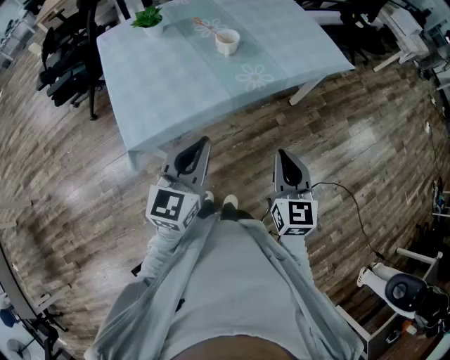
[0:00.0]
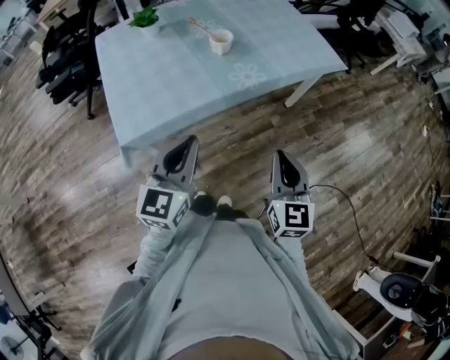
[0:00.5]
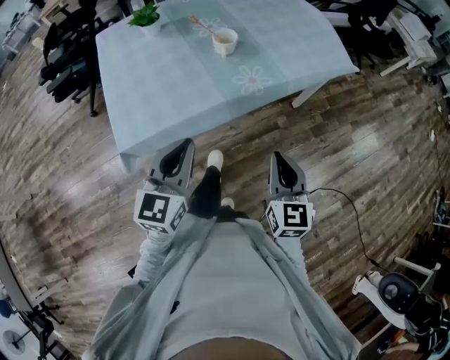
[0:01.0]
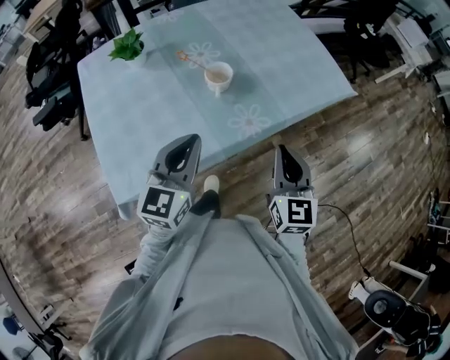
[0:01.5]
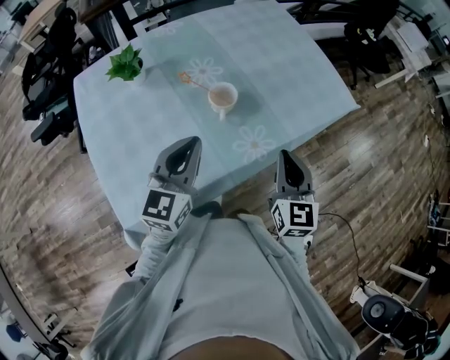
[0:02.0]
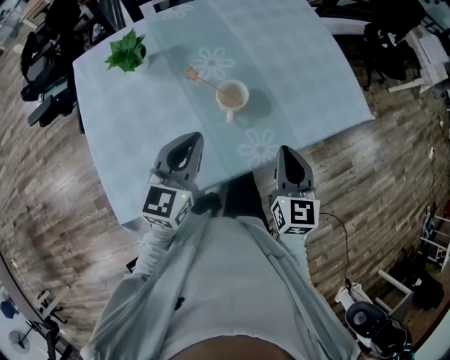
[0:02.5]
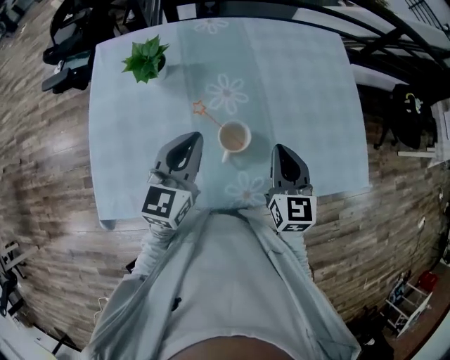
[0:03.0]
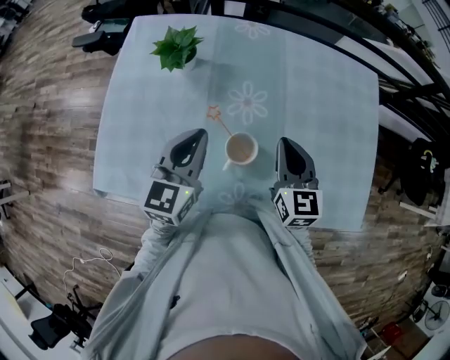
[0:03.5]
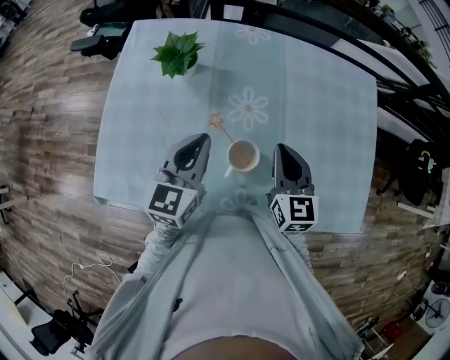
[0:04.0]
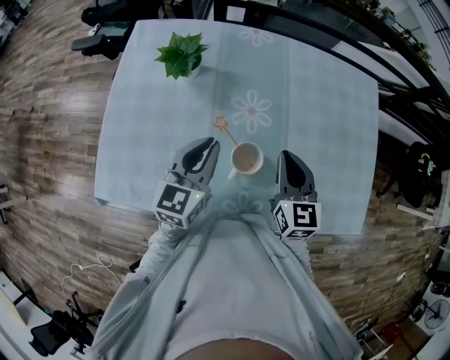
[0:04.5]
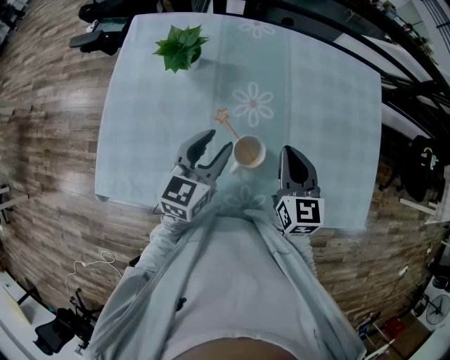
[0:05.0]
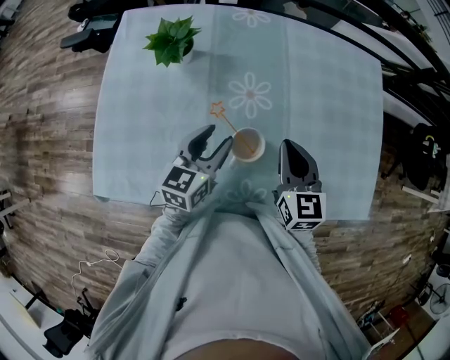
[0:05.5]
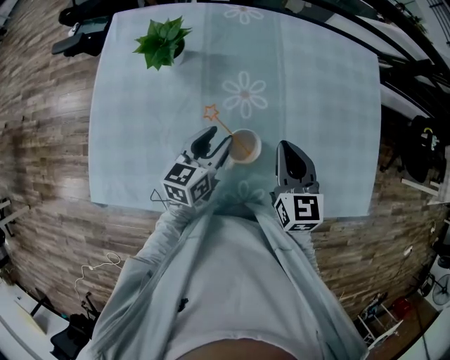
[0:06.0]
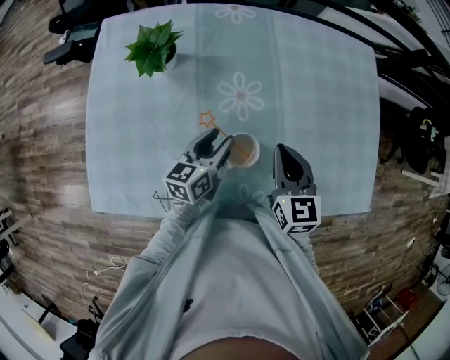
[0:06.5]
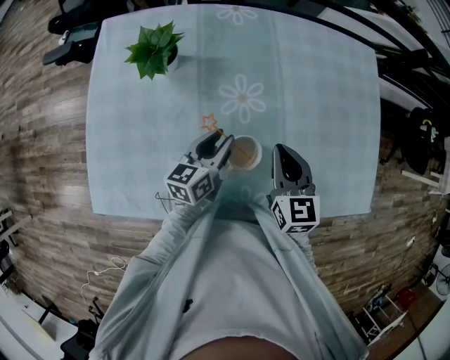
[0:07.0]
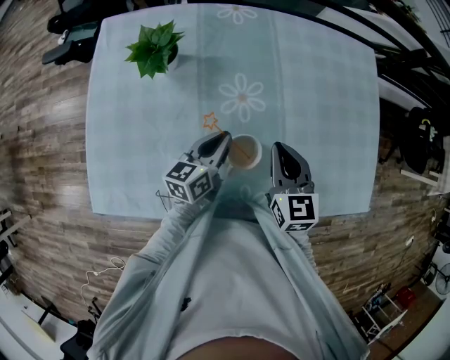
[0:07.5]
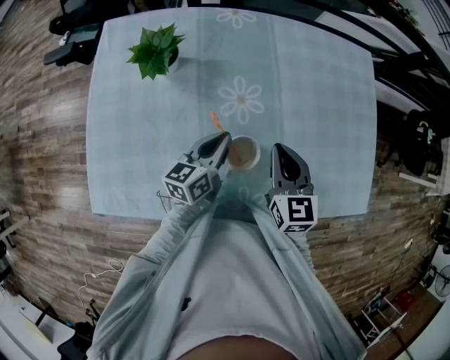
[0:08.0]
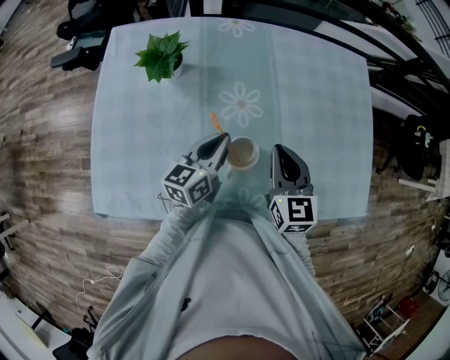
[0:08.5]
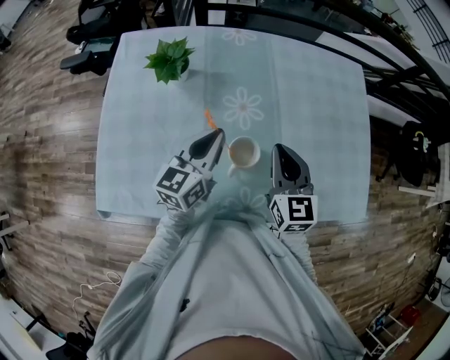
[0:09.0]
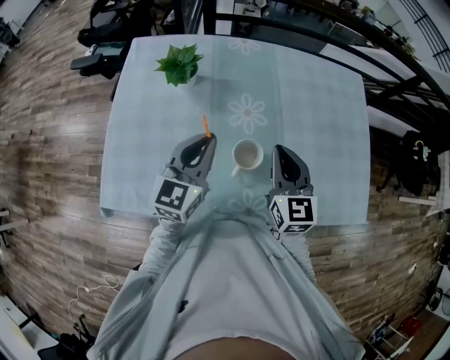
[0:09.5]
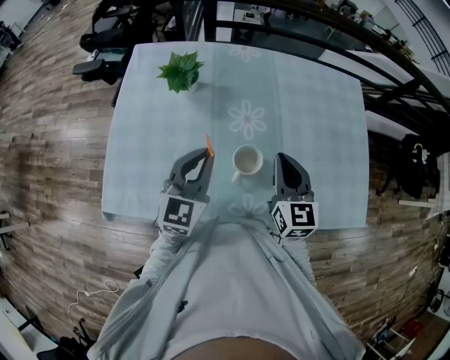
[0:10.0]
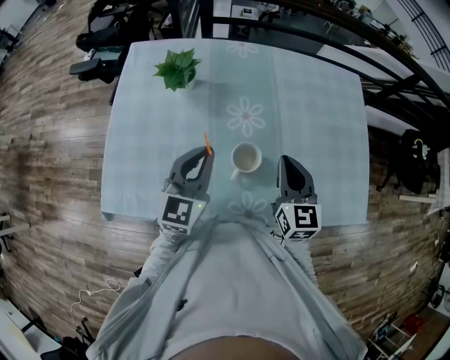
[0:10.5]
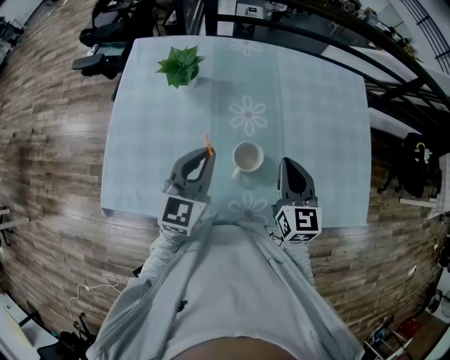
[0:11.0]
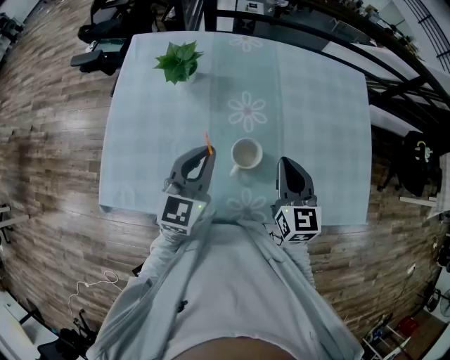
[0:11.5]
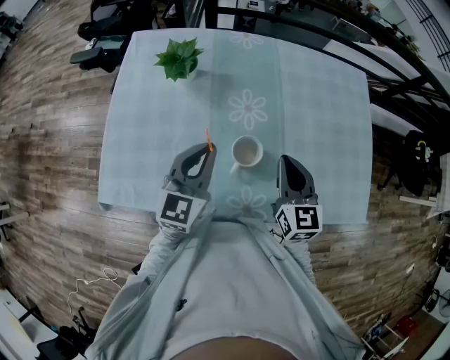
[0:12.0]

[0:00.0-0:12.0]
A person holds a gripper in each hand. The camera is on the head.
0:00.0 to 0:02.0: The two grippers go approximately 30 cm forward.
0:02.0 to 0:04.0: The right gripper changes place by roughly 30 cm, and swivels approximately 40 degrees; the left gripper moves about 20 cm, and turns by some 40 degrees.
0:04.0 to 0:06.0: The left gripper goes about 10 cm downward, changes its angle by roughly 20 degrees, and opens.
0:06.0 to 0:08.0: The left gripper closes.
0:08.0 to 0:10.0: The right gripper is displaced upward by roughly 5 cm; the left gripper travels upward, backward and to the left by some 15 cm, and rolls clockwise, seen from behind, by some 40 degrees.
0:10.0 to 0:12.0: There are only small adjustments of the grippers.

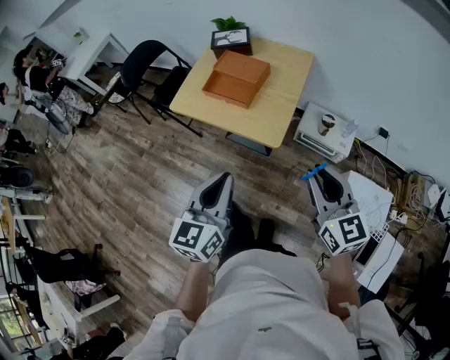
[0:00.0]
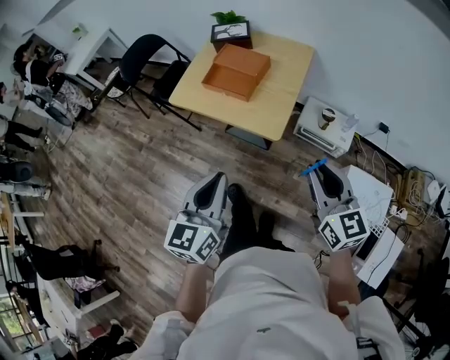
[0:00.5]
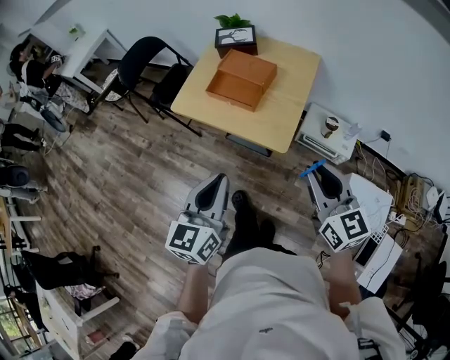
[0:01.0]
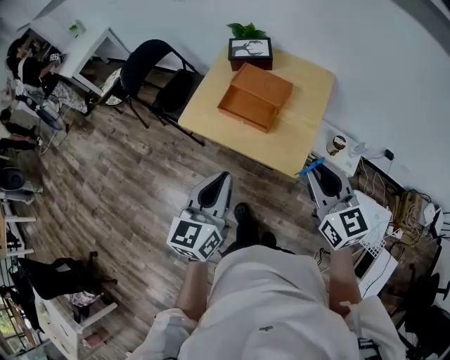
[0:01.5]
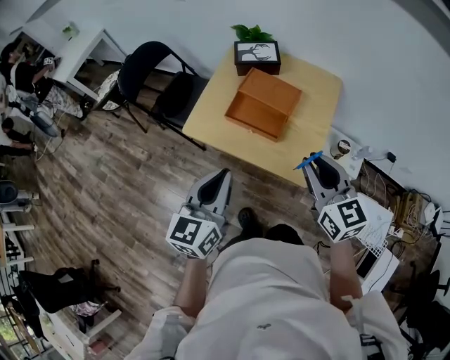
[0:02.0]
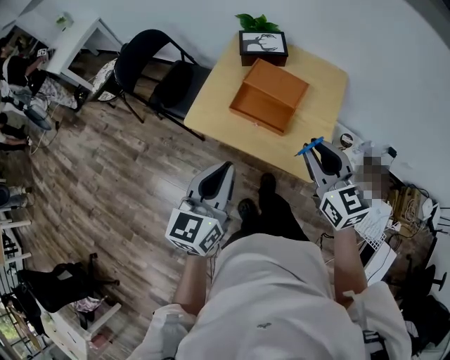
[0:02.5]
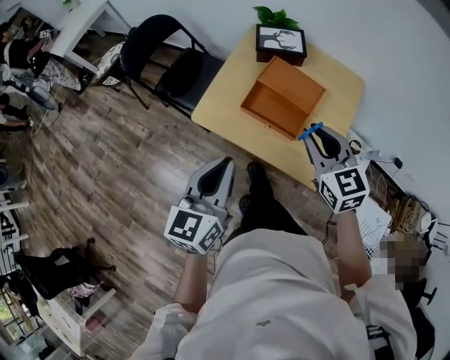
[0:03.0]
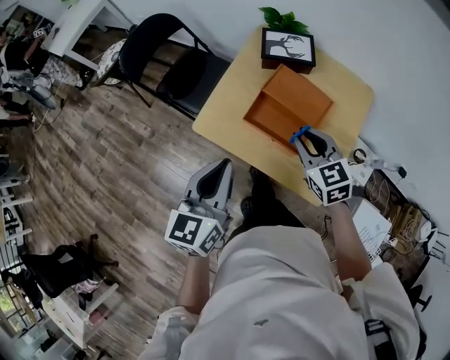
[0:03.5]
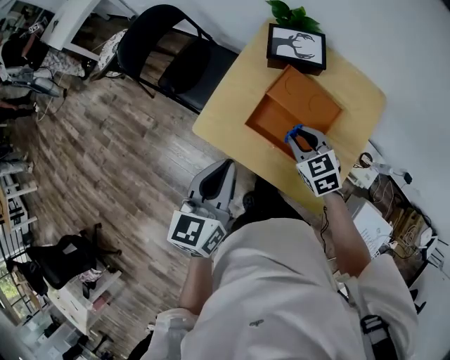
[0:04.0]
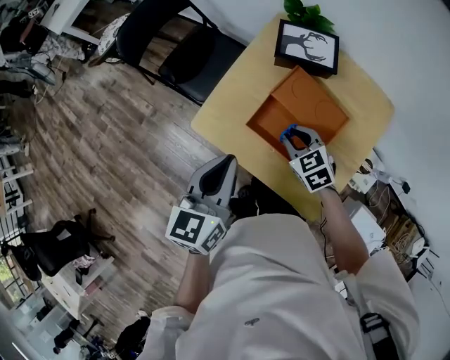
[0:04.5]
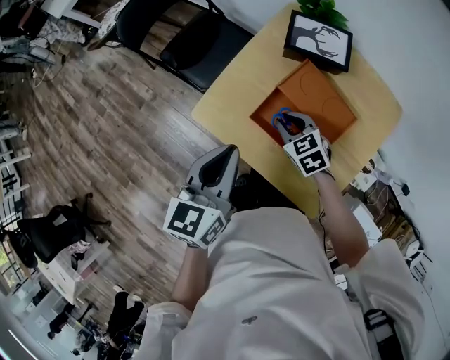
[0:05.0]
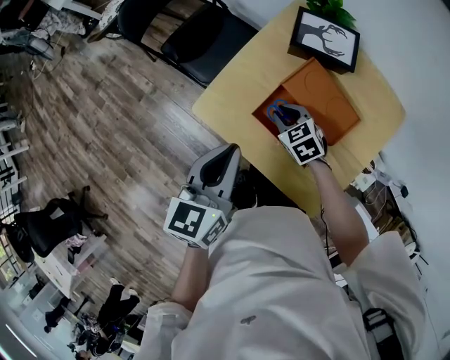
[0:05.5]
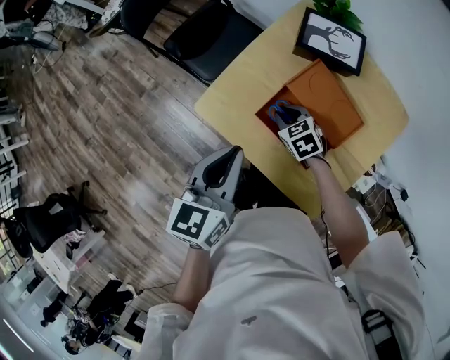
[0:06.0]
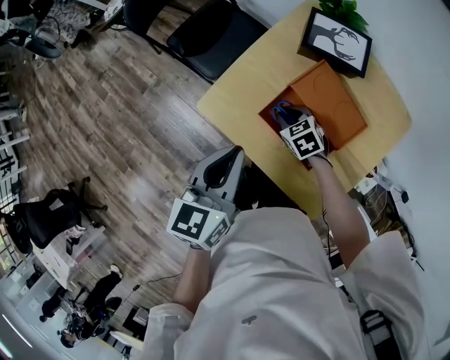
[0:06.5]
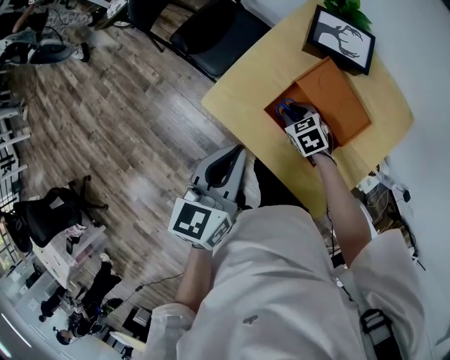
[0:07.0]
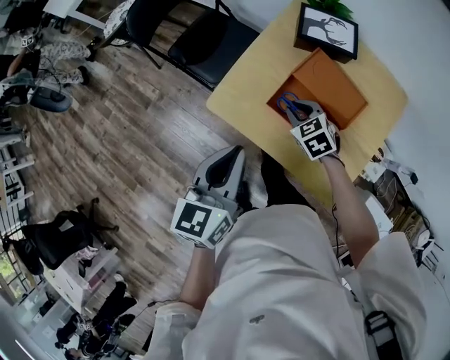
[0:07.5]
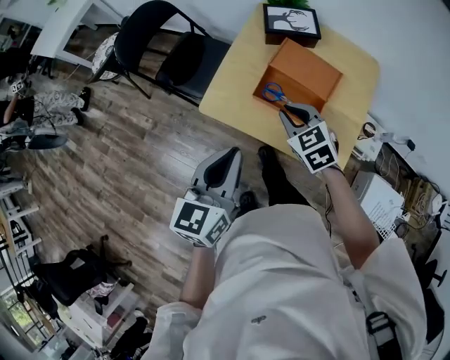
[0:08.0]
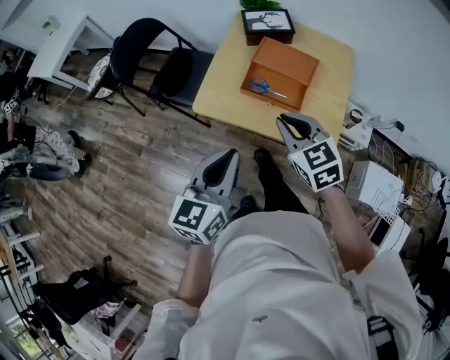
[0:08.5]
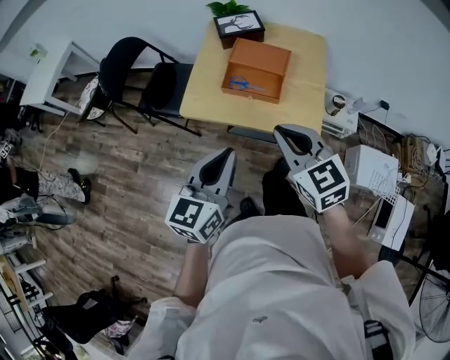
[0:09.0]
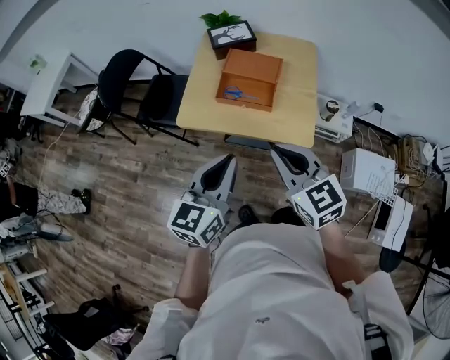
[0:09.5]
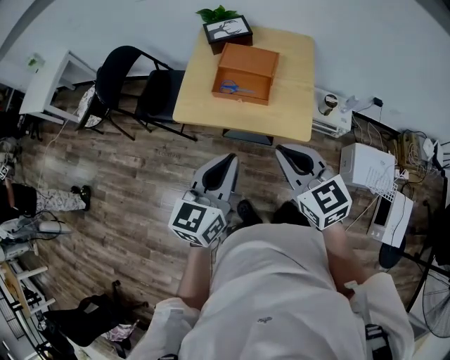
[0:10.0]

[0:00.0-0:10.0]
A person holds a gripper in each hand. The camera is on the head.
0:00.0 to 0:02.0: The grippers both shift forward and to the left by approximately 25 cm.
0:02.0 to 0:04.0: The right gripper is displaced forward and downward by some 30 cm, and turns by about 30 degrees. The left gripper shifts roughly 20 cm forward.
0:04.0 to 0:06.0: The left gripper moves roughly 5 cm. The right gripper moves downward and forward, approximately 15 cm.
0:06.0 to 0:08.0: The left gripper travels backward and to the left by roughly 15 cm; the right gripper goes approximately 20 cm upward and backward, and rotates some 20 degrees.
0:08.0 to 0:10.0: The left gripper travels backward and to the right by about 20 cm. Meanwhile the right gripper heads backward and upward, covering roughly 30 cm, and swivels roughly 30 degrees.

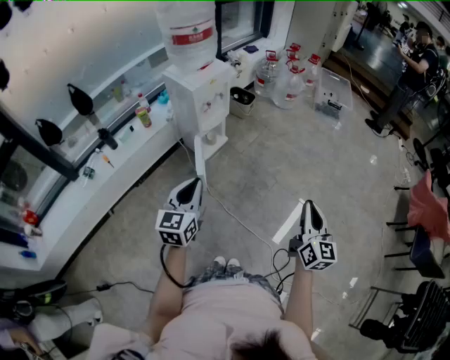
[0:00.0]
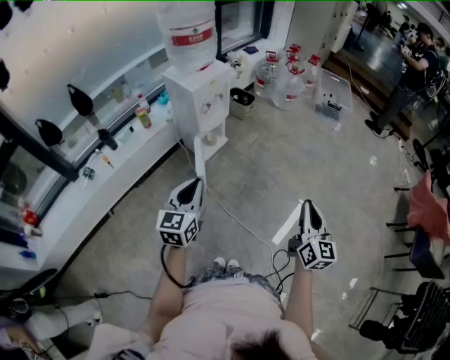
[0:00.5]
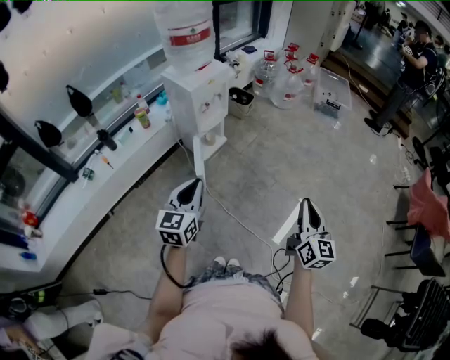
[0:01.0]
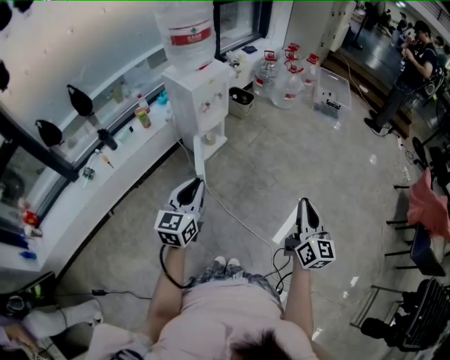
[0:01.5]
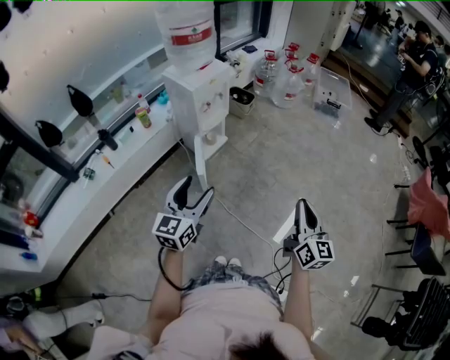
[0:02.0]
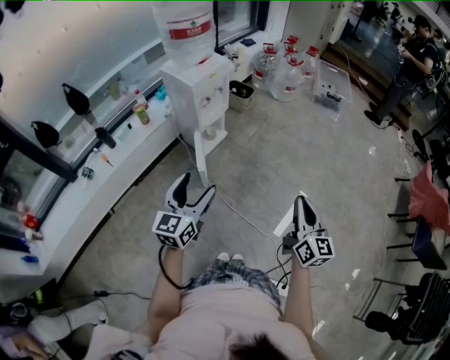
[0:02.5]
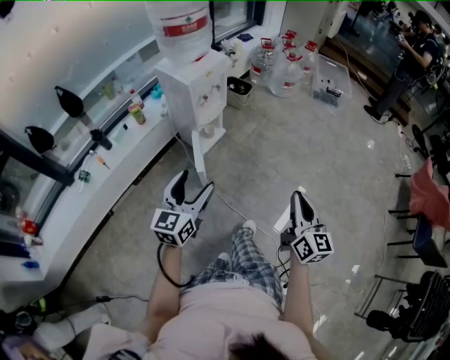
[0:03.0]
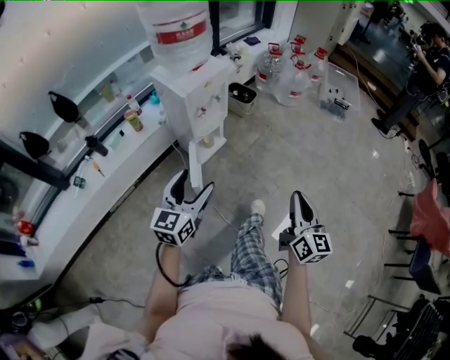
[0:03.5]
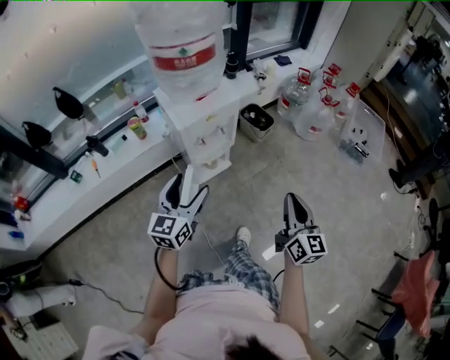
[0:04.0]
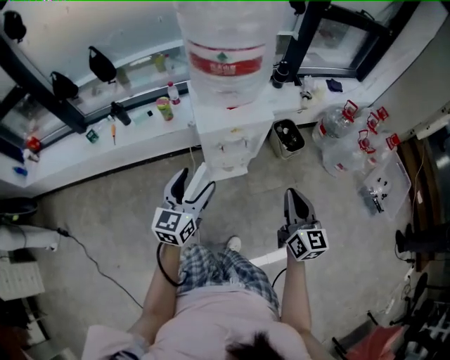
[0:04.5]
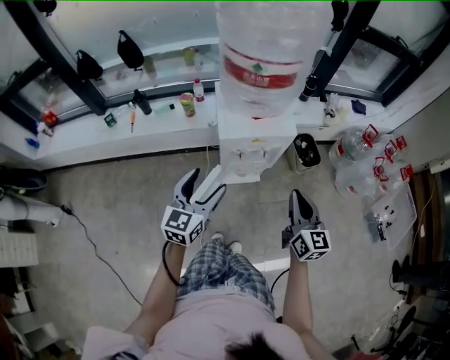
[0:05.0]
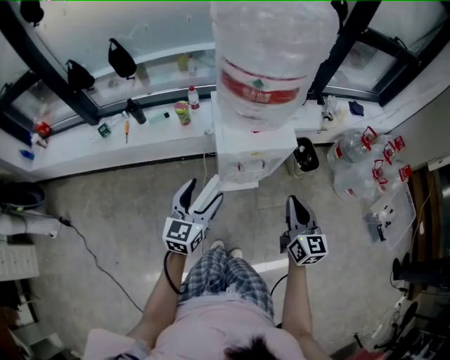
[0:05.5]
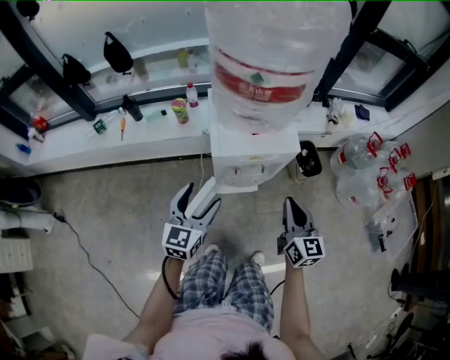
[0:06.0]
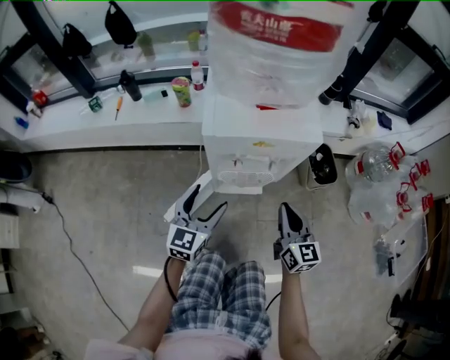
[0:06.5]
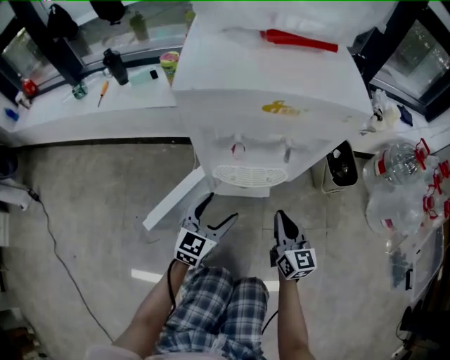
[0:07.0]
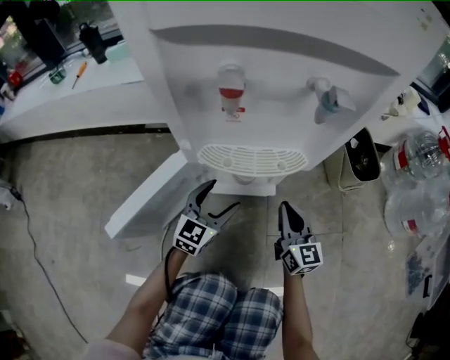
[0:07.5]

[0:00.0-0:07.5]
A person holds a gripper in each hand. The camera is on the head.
0:00.0 to 0:02.0: The left gripper opens up.
0:02.0 to 0:04.0: Both grippers move forward, about 40 cm.
0:04.0 to 0:05.5: The right gripper is displaced forward by some 25 cm, and turns by about 30 degrees; the left gripper heads forward, covering about 15 cm, and turns by approximately 20 degrees.
0:05.5 to 0:07.5: Both grippers travel together downward, about 70 cm.
